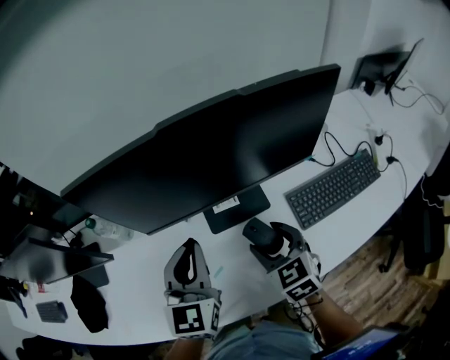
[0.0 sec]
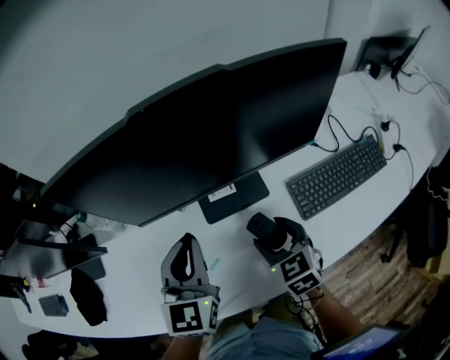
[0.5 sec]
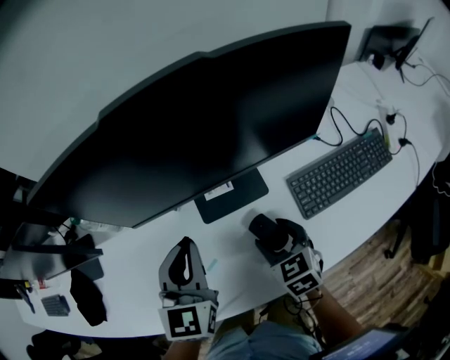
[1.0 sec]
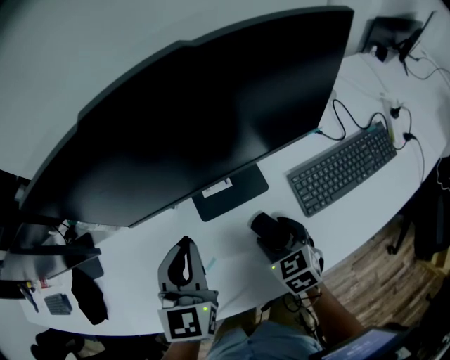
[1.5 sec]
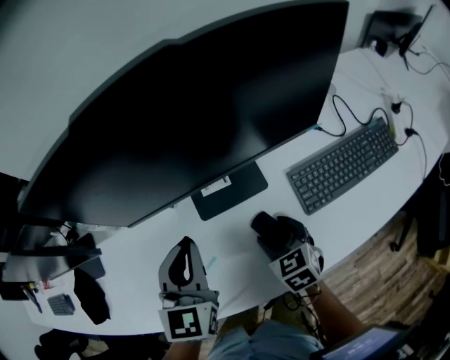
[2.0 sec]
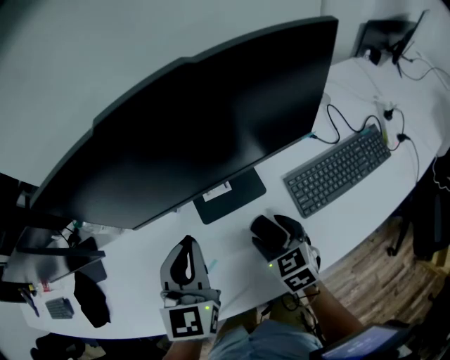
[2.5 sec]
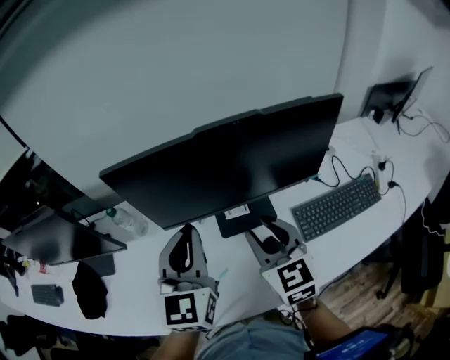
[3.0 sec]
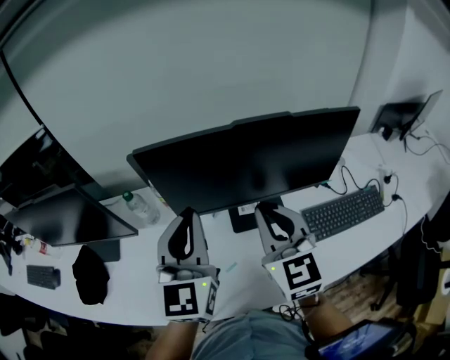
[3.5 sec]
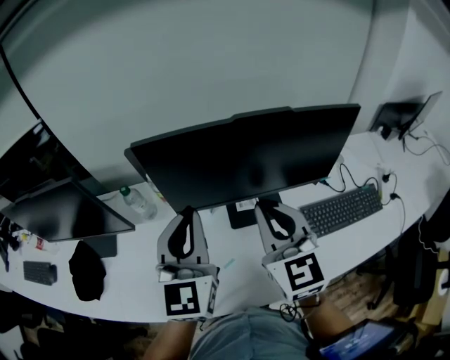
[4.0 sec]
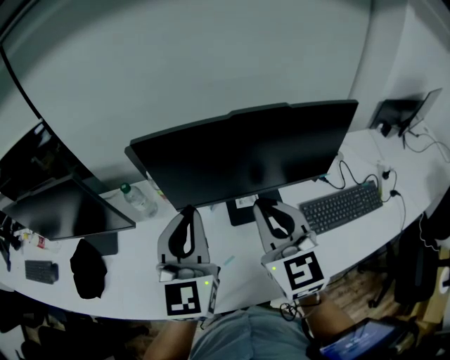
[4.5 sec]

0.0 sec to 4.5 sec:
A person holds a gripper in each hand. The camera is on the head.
0.0 sec to 2.0 sec: The right gripper travels downward by roughly 10 cm. The left gripper heads downward, covering about 5 cm.
2.0 sec to 4.5 sec: The left gripper heads upward and to the left, covering approximately 20 cm, and swivels roughly 20 degrees. The right gripper heads upward, covering about 30 cm, points its fingers some 40 degrees further upward, and closes.

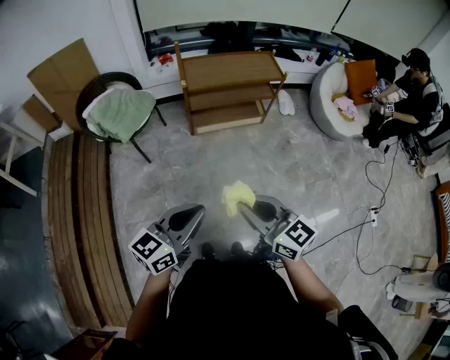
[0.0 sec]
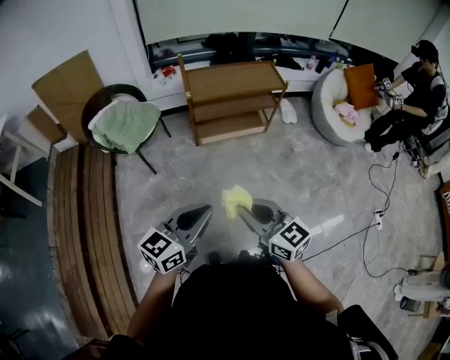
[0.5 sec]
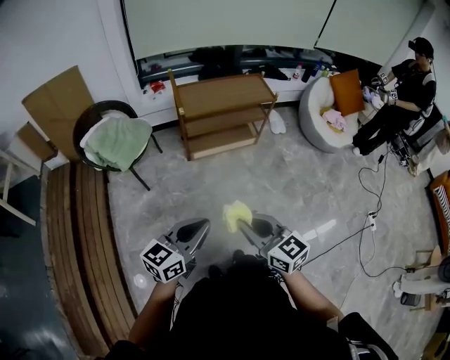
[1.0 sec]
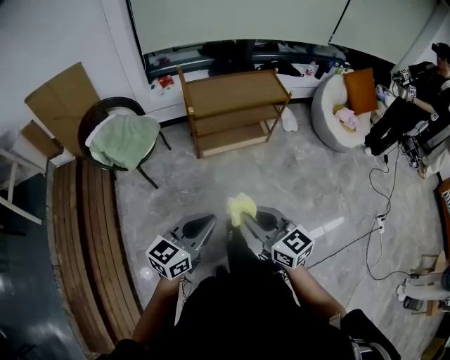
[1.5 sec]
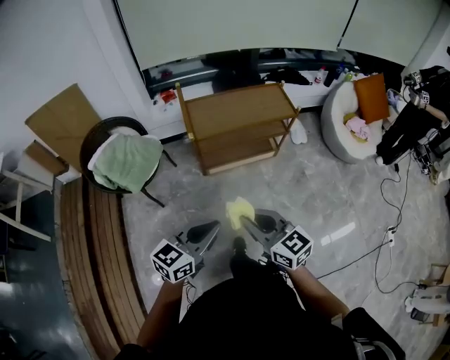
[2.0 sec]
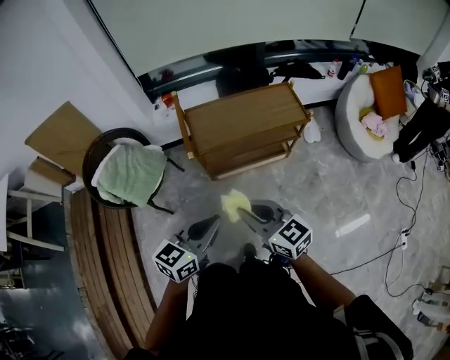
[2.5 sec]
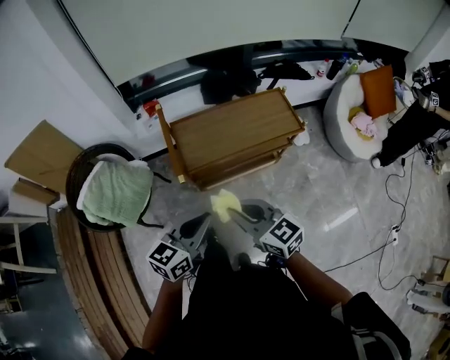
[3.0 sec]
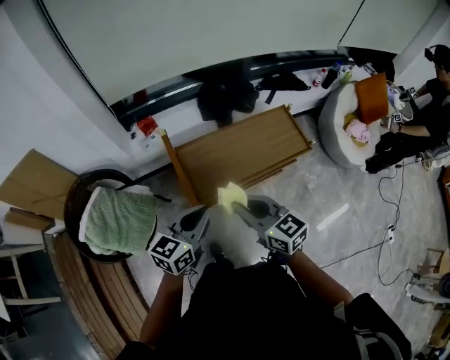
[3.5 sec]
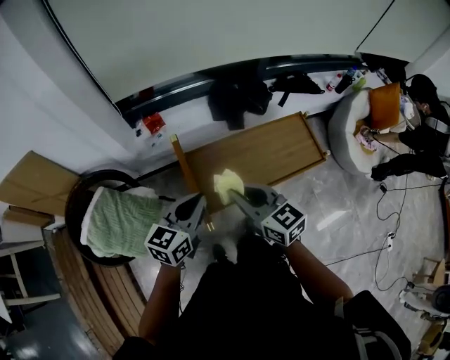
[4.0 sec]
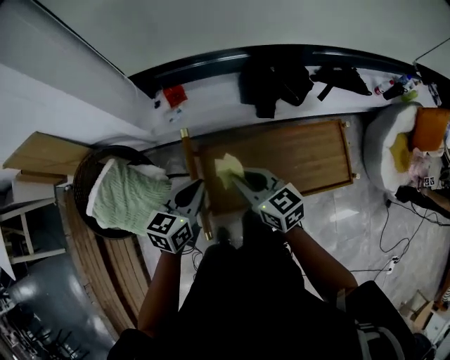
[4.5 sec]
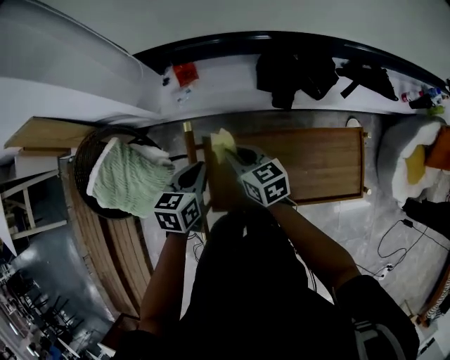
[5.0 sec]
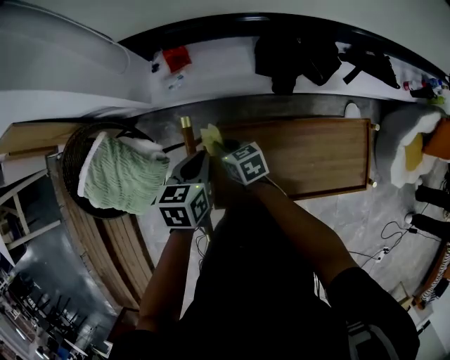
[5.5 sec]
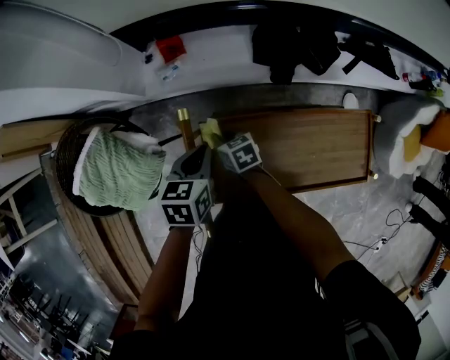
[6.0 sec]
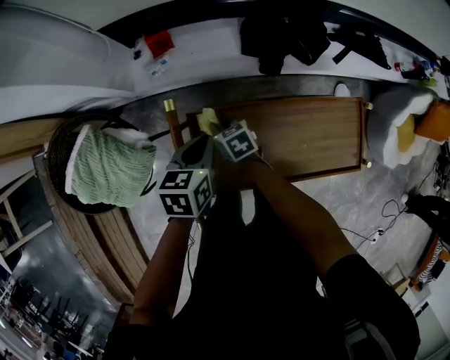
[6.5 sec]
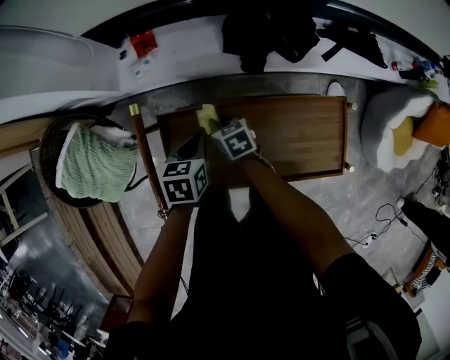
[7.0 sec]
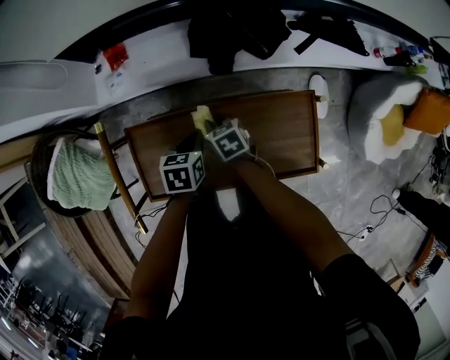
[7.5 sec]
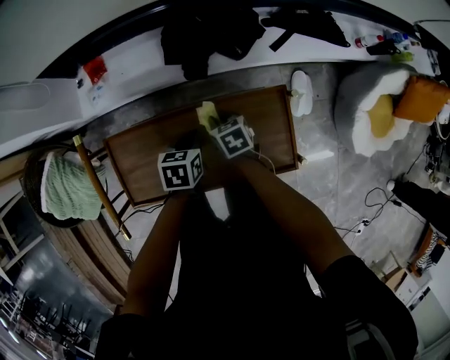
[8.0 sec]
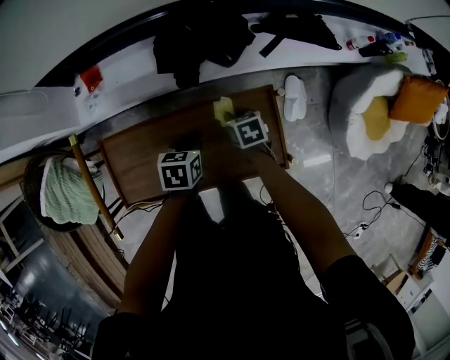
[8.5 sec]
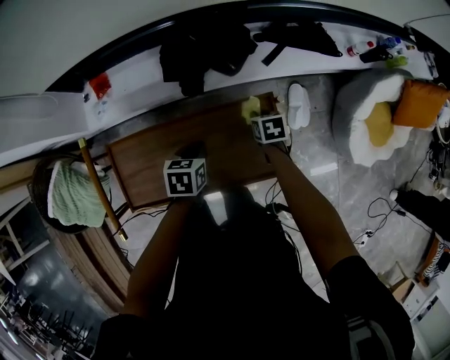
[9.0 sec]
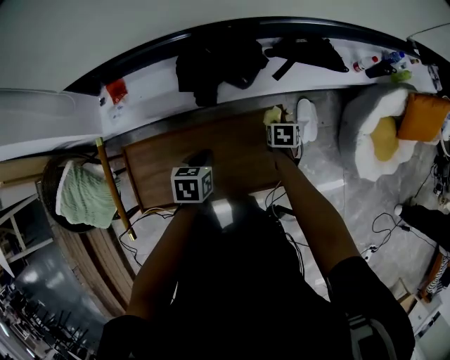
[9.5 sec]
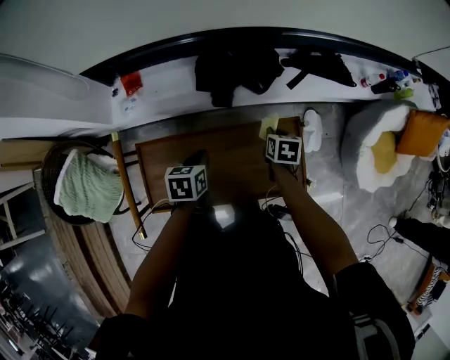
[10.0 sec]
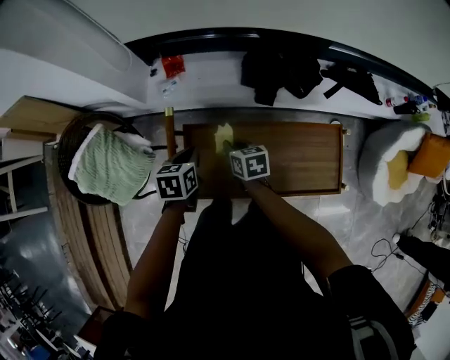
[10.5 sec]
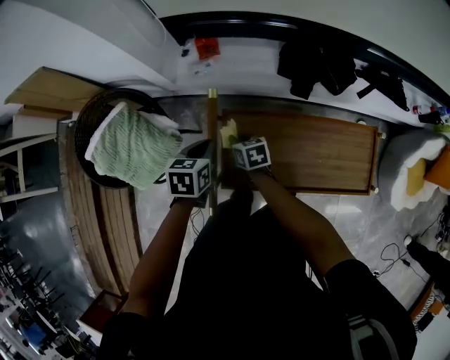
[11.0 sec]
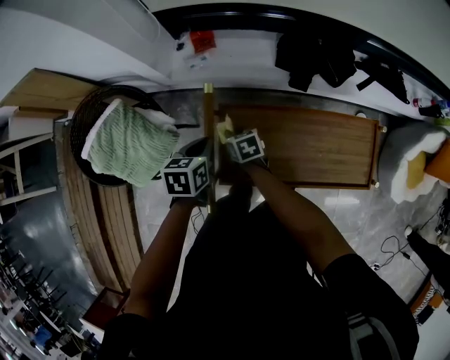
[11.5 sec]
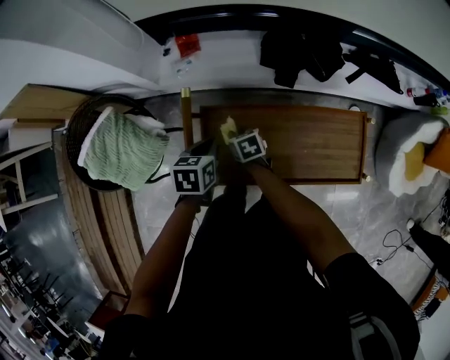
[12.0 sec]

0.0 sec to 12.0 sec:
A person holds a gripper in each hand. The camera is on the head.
0.0 sec to 2.0 sec: Both grippers travel together forward, about 20 cm.
2.0 sec to 4.0 sec: The pair of grippers is taken forward, approximately 50 cm.
4.0 sec to 6.0 sec: The left gripper moves forward and downward, about 25 cm, and tips its fingers downward by some 30 degrees. Meanwhile the right gripper goes about 40 cm downward and forward, and angles its fingers downward, by about 30 degrees.
6.0 sec to 8.0 sec: Both grippers travel together to the right, about 30 cm.
8.0 sec to 10.0 sec: The right gripper goes approximately 15 cm to the right and upward, and rotates roughly 30 degrees. The left gripper is displaced upward and to the left by some 10 cm.
10.0 sec to 12.0 sec: The right gripper ends up some 40 cm from where it was, and turns by some 30 degrees, while the left gripper moves roughly 20 cm.

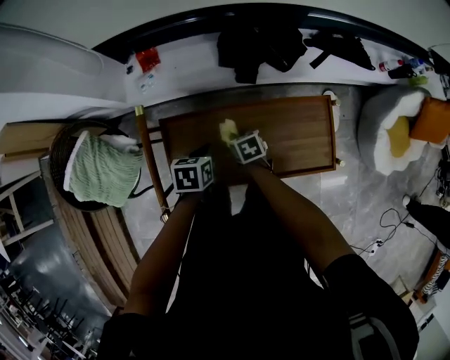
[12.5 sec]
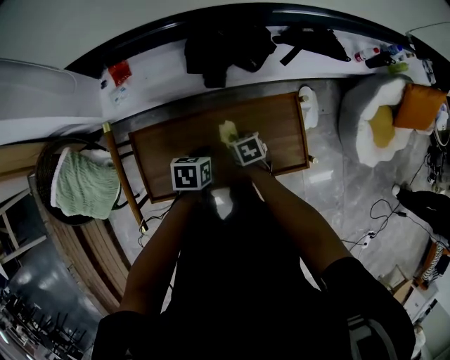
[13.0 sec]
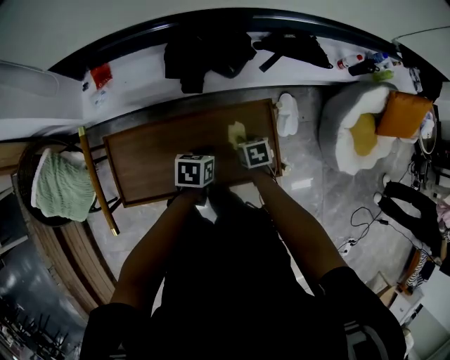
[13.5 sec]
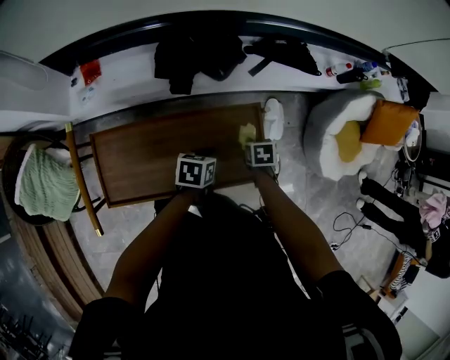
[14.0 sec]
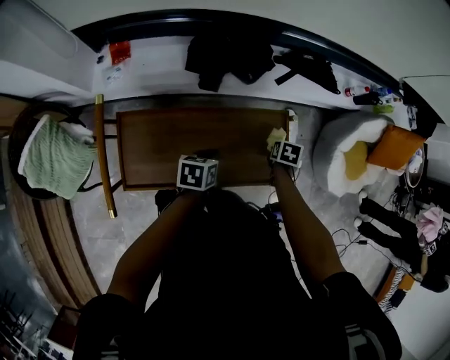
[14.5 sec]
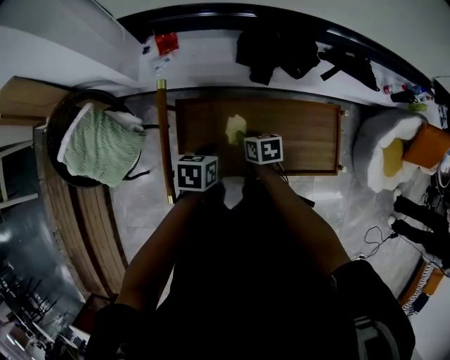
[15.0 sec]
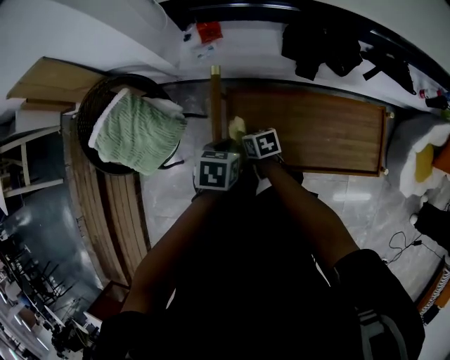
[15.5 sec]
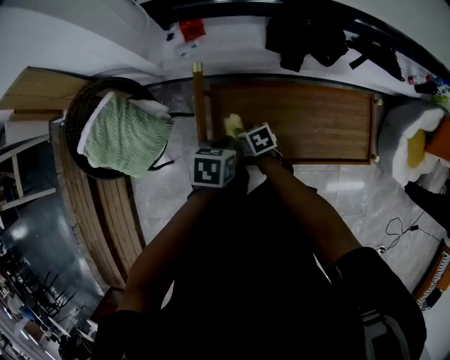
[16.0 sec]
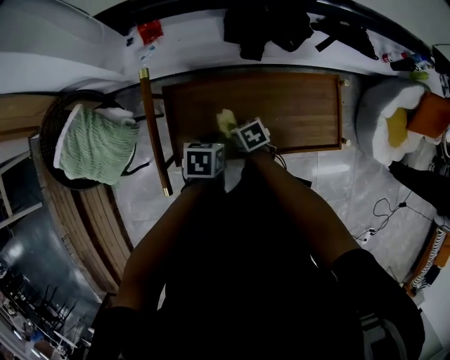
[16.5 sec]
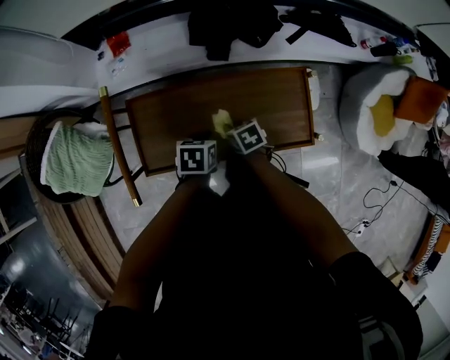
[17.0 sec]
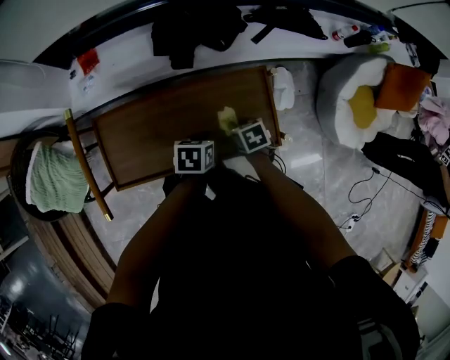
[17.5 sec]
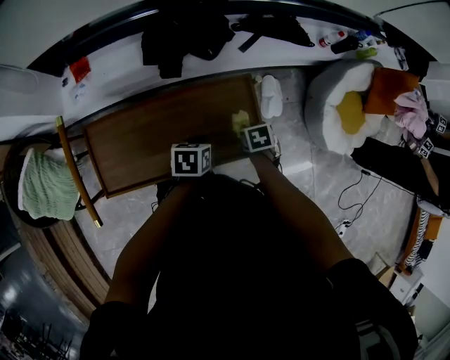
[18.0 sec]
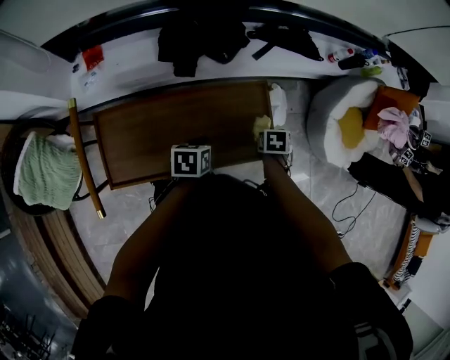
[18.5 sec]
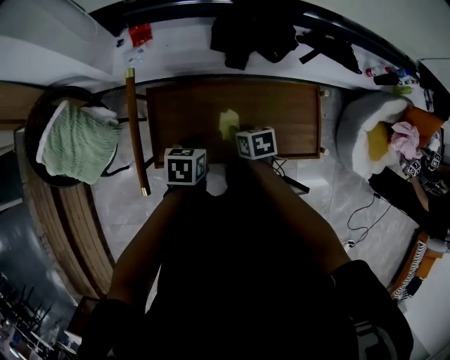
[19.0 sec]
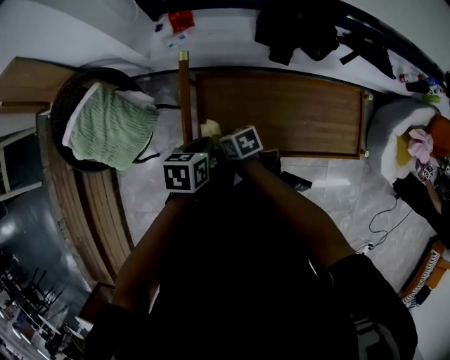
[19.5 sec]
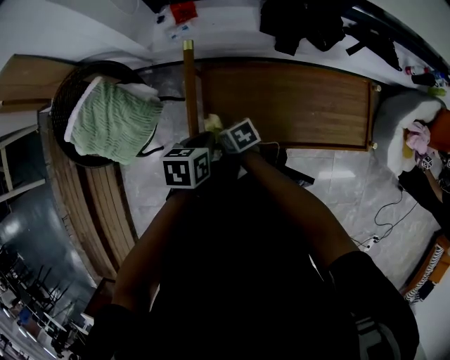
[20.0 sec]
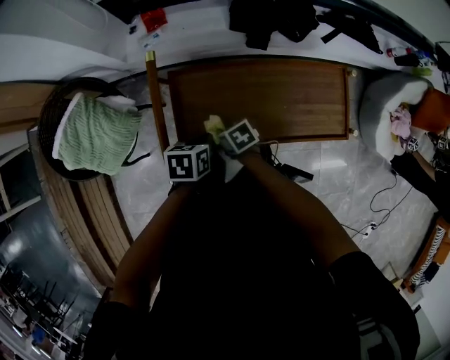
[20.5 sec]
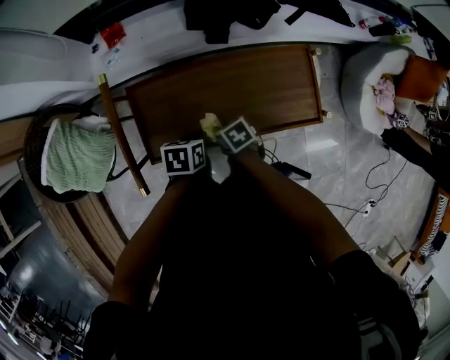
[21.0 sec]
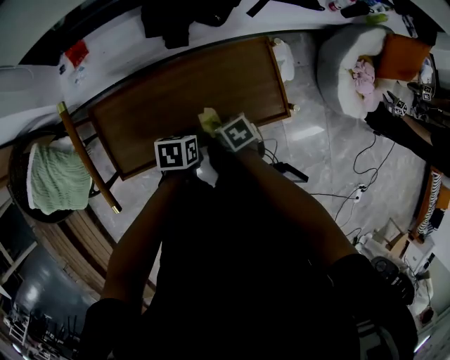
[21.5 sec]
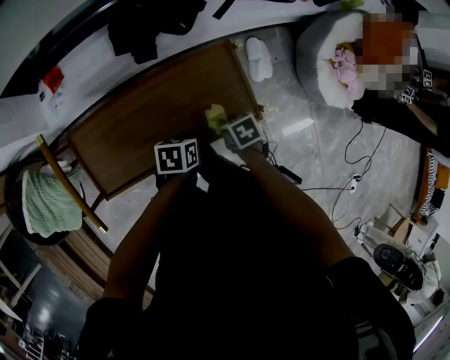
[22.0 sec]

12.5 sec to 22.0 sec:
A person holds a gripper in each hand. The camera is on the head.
12.5 sec to 14.5 sec: The right gripper shifts by approximately 35 cm, and changes its angle by about 40 degrees. Meanwhile the left gripper ends up roughly 20 cm from where it was.
14.5 sec to 16.5 sec: The right gripper ends up some 40 cm from where it was, and changes its angle by about 40 degrees.
16.5 sec to 18.0 sec: The left gripper shifts by some 25 cm. The right gripper changes place by approximately 35 cm, and turns by some 30 degrees.
18.0 sec to 20.0 sec: The left gripper changes place by roughly 40 cm. The right gripper ends up approximately 50 cm from where it was, and turns by about 40 degrees.
20.0 sec to 22.0 sec: The right gripper ends up roughly 50 cm from where it was, and rotates some 30 degrees. The left gripper ends up approximately 40 cm from where it was, and turns by about 20 degrees.
